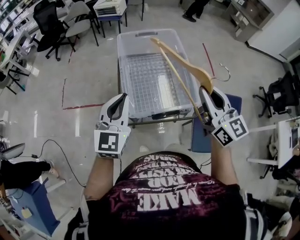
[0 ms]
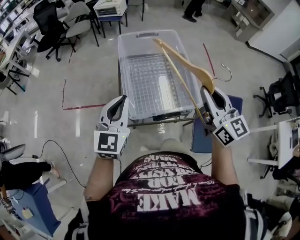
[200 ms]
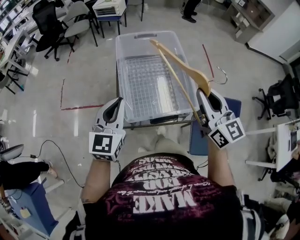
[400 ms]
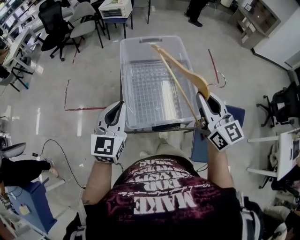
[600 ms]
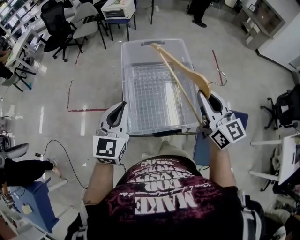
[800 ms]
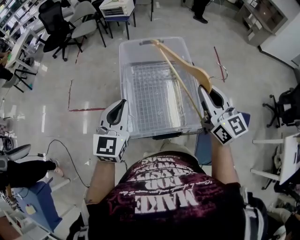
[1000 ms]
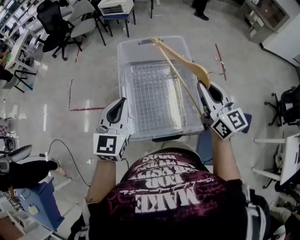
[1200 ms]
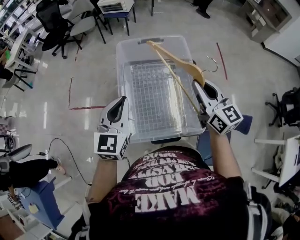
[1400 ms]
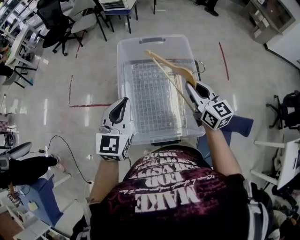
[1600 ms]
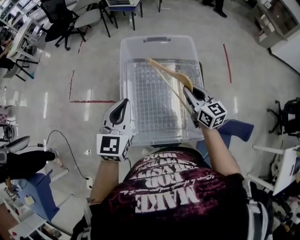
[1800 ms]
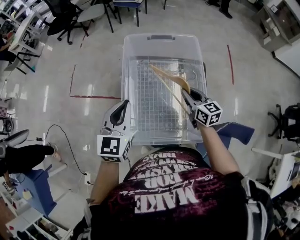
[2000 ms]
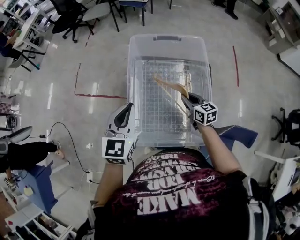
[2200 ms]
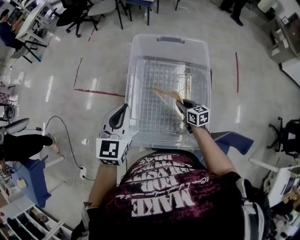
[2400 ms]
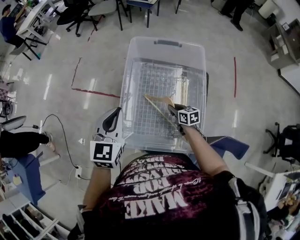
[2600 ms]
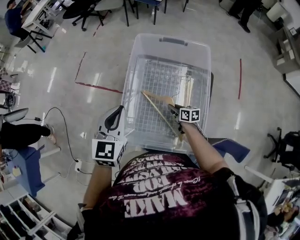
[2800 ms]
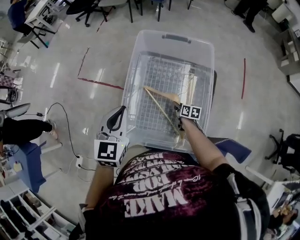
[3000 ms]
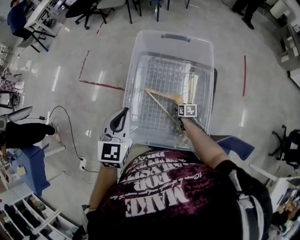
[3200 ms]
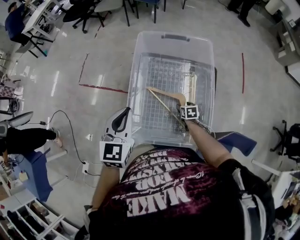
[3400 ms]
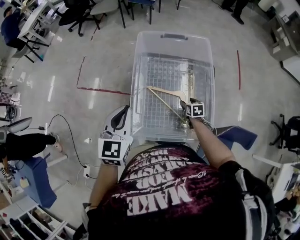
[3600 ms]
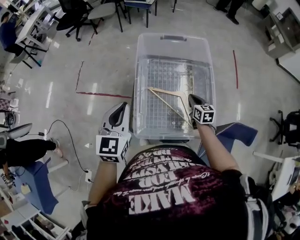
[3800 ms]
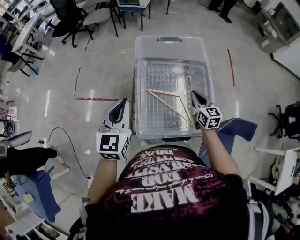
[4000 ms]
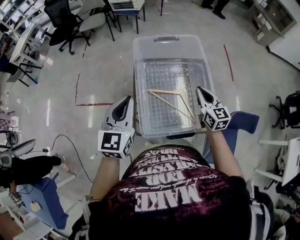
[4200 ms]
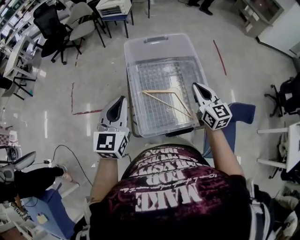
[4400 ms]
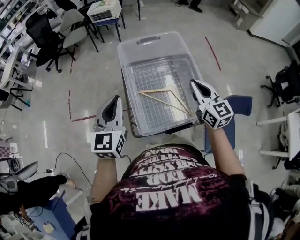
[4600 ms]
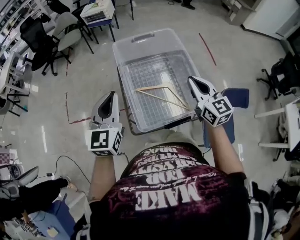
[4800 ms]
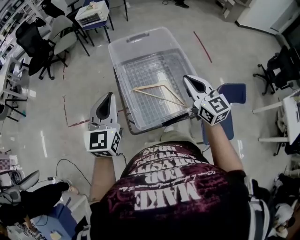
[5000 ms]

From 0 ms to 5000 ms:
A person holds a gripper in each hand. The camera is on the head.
From 0 ms to 1600 ms: The right gripper heads forward and downward, covering some 25 cm, while the left gripper shifts about 15 cm forward.
From 1600 ms to 3400 ms: The right gripper travels downward by about 40 cm, angles its fingers downward, by approximately 50 degrees, and opens, while the left gripper moves approximately 5 cm.
From 3400 ms to 5000 ms: The right gripper is displaced upward by roughly 40 cm, tilts its fingers approximately 50 degrees upward, and closes up. The left gripper moves upward and to the left, roughly 10 cm, and rotates roughly 20 degrees.

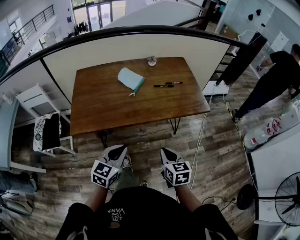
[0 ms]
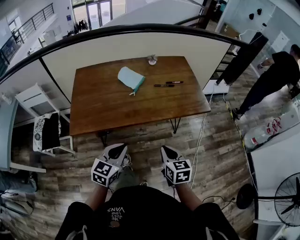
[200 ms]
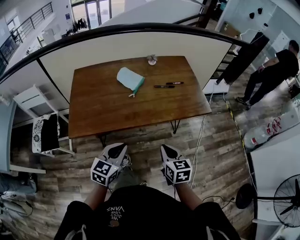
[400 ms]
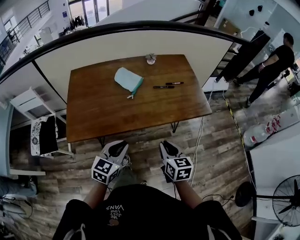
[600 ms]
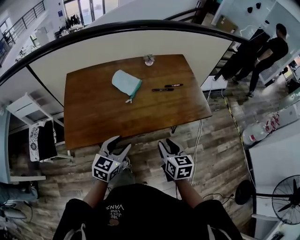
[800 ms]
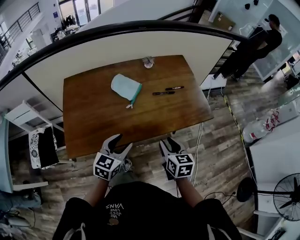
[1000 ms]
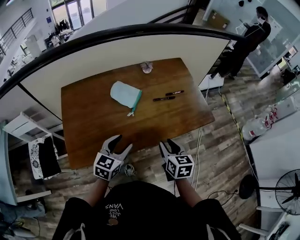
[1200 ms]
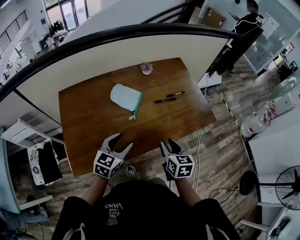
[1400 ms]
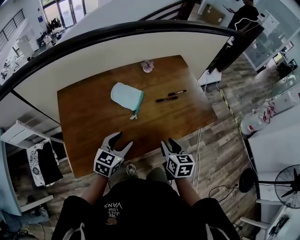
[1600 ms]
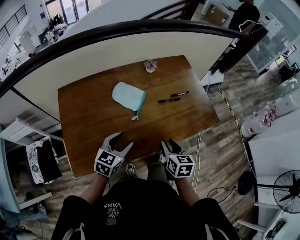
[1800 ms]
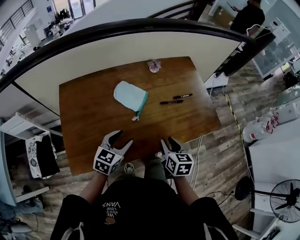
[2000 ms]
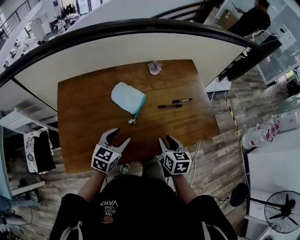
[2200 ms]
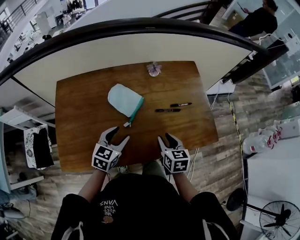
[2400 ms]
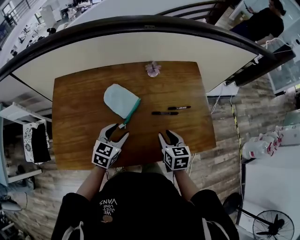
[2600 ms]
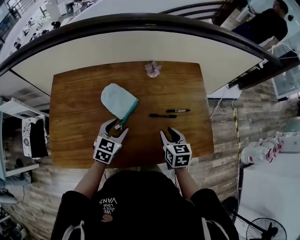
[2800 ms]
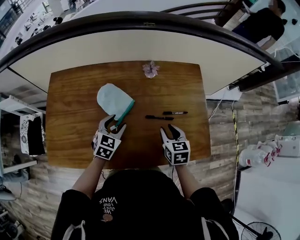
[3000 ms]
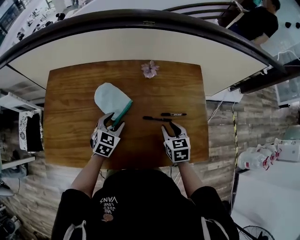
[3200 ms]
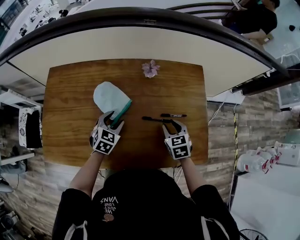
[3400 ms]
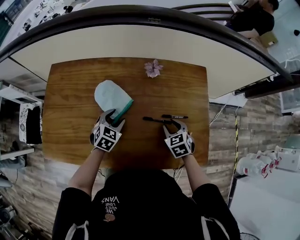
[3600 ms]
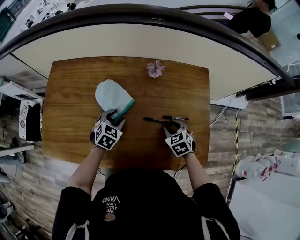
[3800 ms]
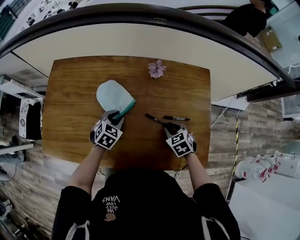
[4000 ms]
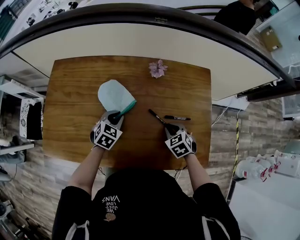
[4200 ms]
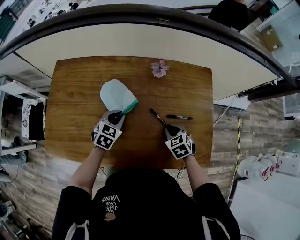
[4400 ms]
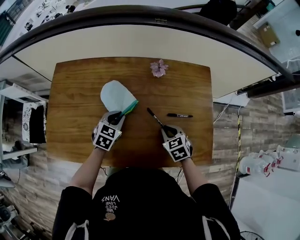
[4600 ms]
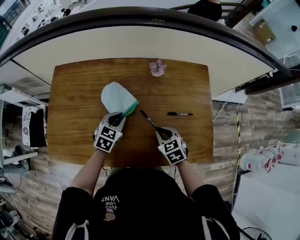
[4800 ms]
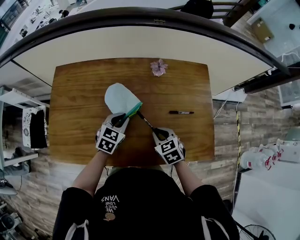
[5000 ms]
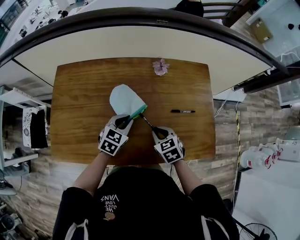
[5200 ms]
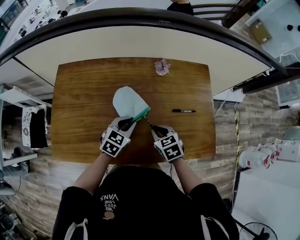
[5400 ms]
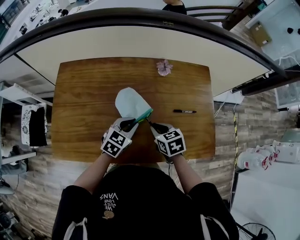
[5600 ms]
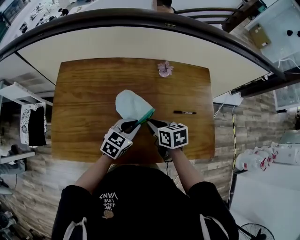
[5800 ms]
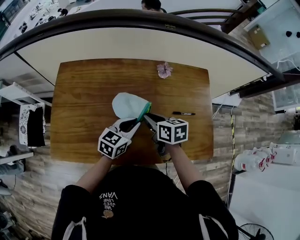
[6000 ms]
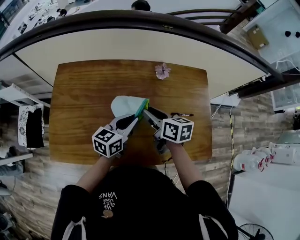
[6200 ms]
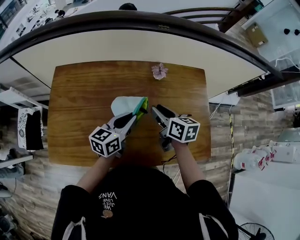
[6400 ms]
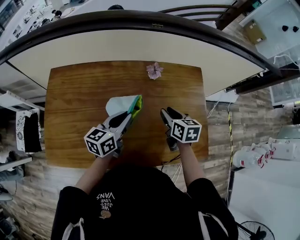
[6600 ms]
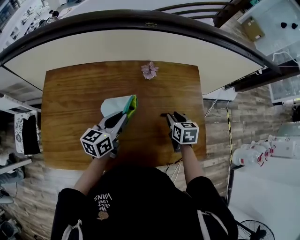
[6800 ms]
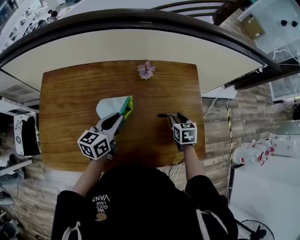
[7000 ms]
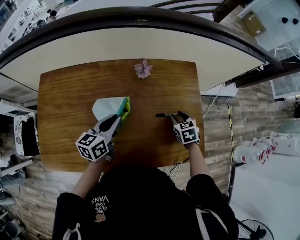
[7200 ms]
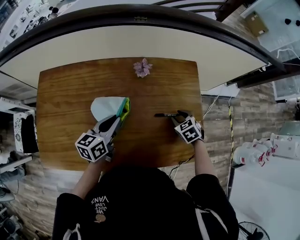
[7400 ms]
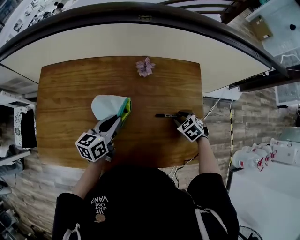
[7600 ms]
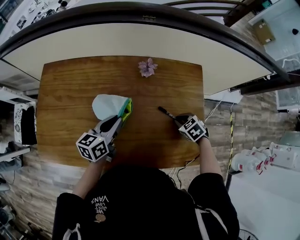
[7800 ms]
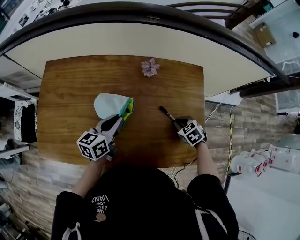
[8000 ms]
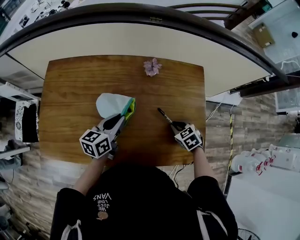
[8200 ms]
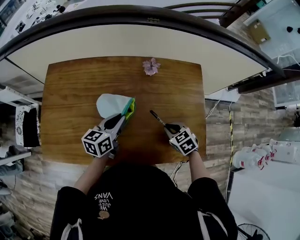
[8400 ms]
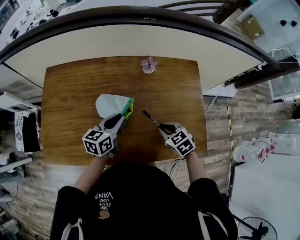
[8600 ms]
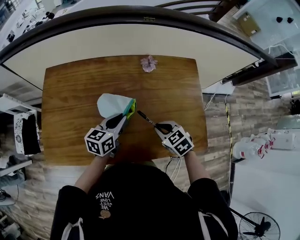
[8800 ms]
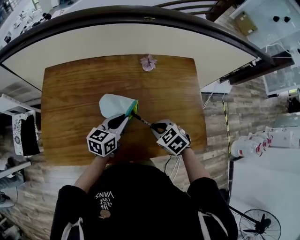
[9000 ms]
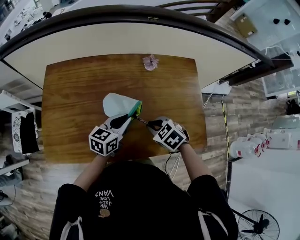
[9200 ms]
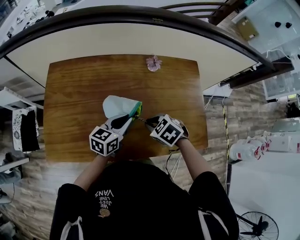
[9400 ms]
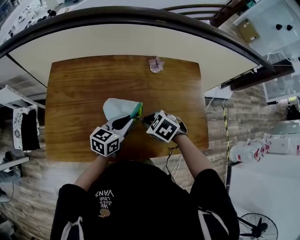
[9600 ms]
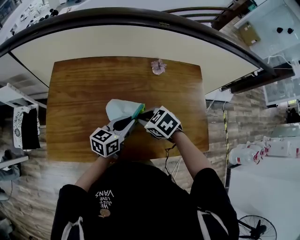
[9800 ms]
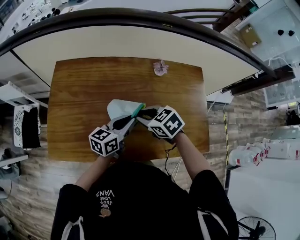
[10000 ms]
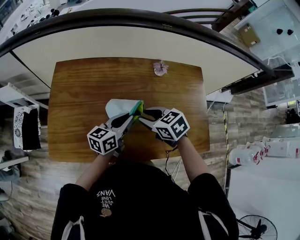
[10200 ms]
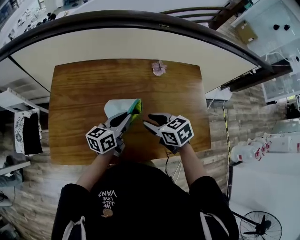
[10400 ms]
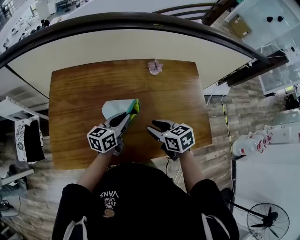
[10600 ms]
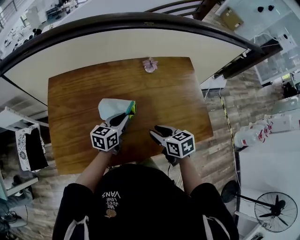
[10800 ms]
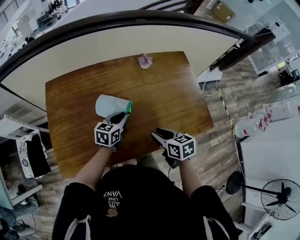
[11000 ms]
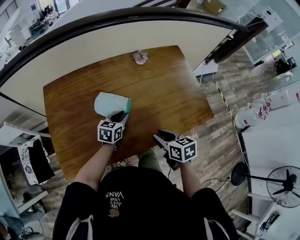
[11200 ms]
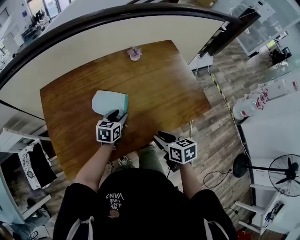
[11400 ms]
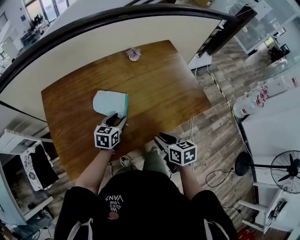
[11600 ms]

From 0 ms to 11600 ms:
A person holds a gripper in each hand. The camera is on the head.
From 0 ms to 1400 ms: Both grippers travel together forward, roughly 25 cm. The right gripper opens; the left gripper opens its fingers.
From 1400 ms to 2800 ms: The right gripper shifts about 20 cm forward. Meanwhile the left gripper is displaced forward and downward by roughly 20 cm.
From 2800 ms to 4400 ms: The left gripper heads downward and forward, covering roughly 10 cm, and closes its fingers. The right gripper shifts some 10 cm downward, and swivels approximately 40 degrees.
From 4400 ms to 5800 ms: The right gripper travels to the left and upward by roughly 15 cm, and swivels some 40 degrees. Meanwhile the left gripper heads upward and backward, covering roughly 10 cm, and turns by approximately 20 degrees.
From 5800 ms to 7200 ms: The right gripper travels to the right by roughly 25 cm, and swivels roughly 30 degrees, while the left gripper travels forward by some 5 cm, and rotates roughly 30 degrees.
From 7200 ms to 8800 ms: The right gripper heads to the left and backward, covering roughly 20 cm, and turns by about 20 degrees, while the left gripper shifts by about 5 cm.
From 8800 ms to 10200 ms: The right gripper heads to the left, upward and forward, covering some 15 cm.
From 10200 ms to 11600 ms: The left gripper is displaced downward by roughly 10 cm, turns by some 30 degrees, and opens. The right gripper shifts by roughly 20 cm, and swivels some 50 degrees.

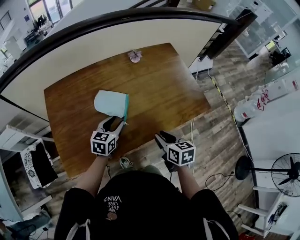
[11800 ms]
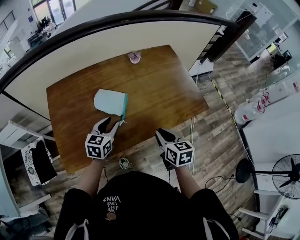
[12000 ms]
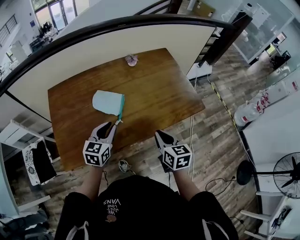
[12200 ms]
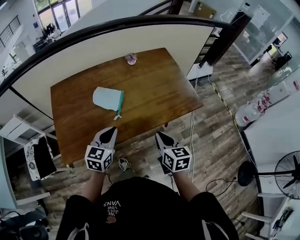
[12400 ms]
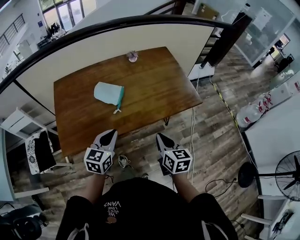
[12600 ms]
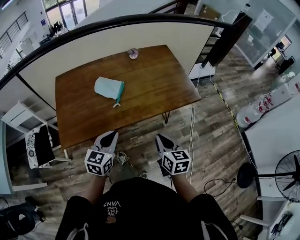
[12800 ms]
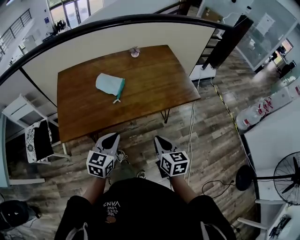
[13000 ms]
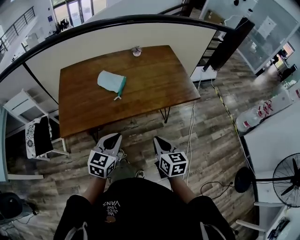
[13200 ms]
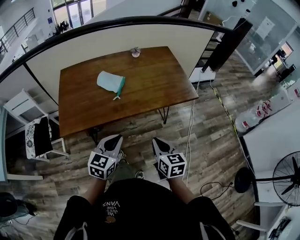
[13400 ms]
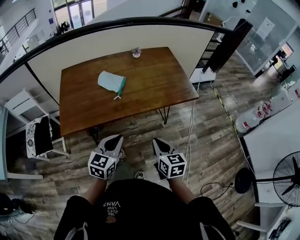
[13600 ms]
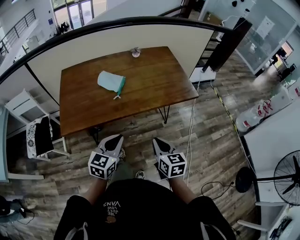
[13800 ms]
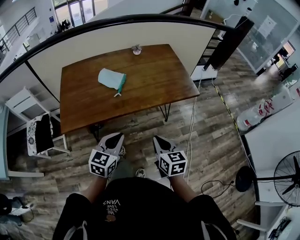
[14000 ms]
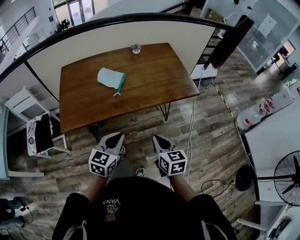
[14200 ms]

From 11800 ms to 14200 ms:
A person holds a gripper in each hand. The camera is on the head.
From 11800 ms to 13000 ms: Both grippers move backward, approximately 20 cm. The right gripper closes, while the left gripper closes.
From 13000 ms to 14200 ms: The left gripper moves roughly 5 cm.

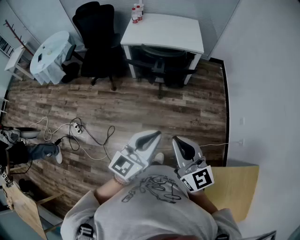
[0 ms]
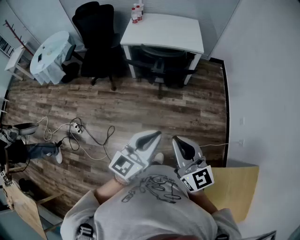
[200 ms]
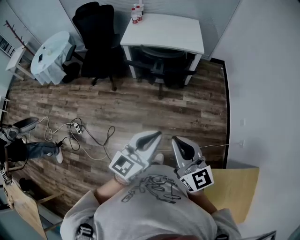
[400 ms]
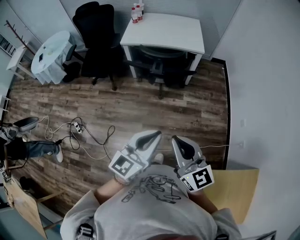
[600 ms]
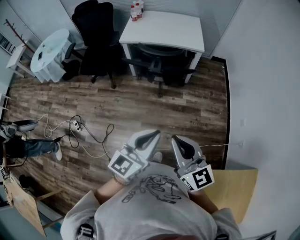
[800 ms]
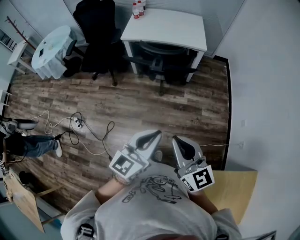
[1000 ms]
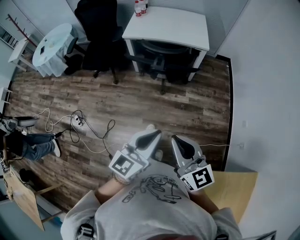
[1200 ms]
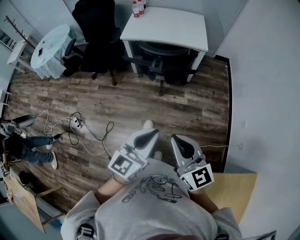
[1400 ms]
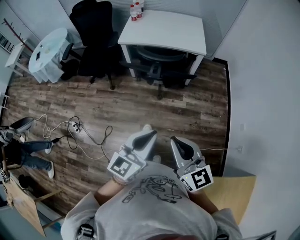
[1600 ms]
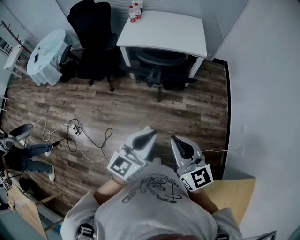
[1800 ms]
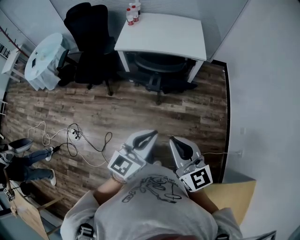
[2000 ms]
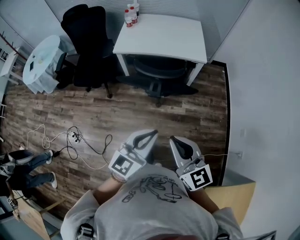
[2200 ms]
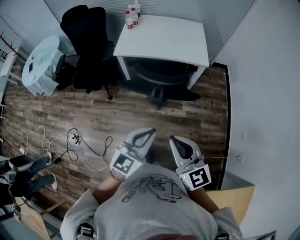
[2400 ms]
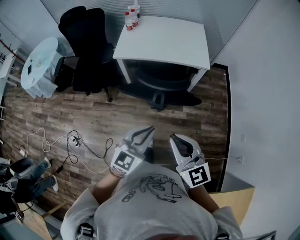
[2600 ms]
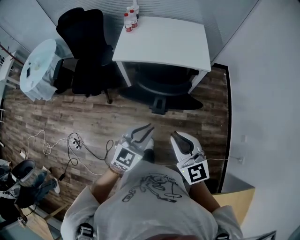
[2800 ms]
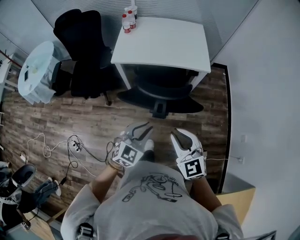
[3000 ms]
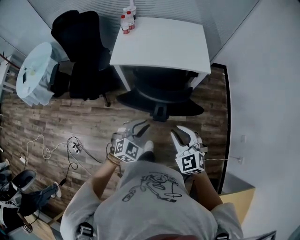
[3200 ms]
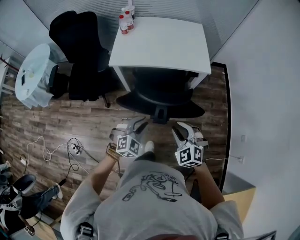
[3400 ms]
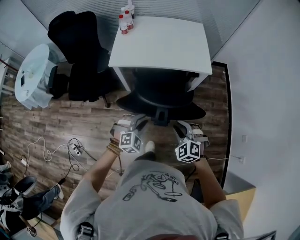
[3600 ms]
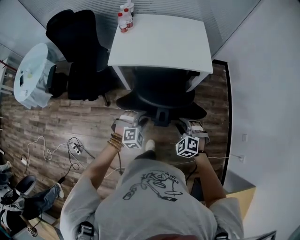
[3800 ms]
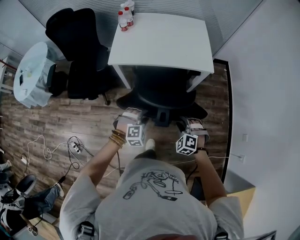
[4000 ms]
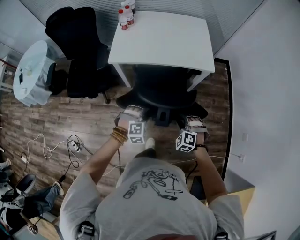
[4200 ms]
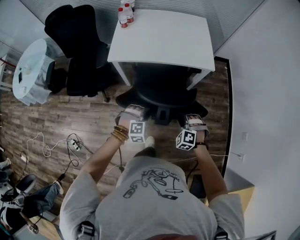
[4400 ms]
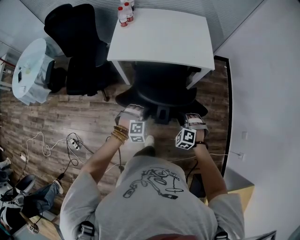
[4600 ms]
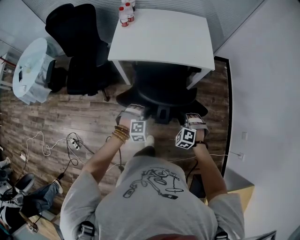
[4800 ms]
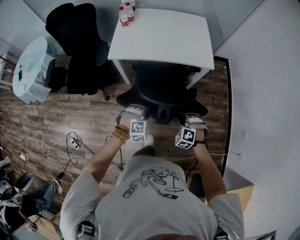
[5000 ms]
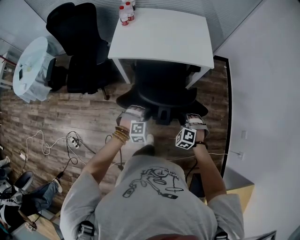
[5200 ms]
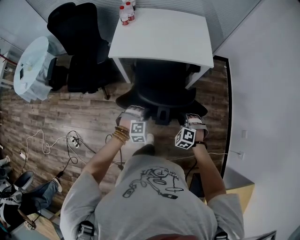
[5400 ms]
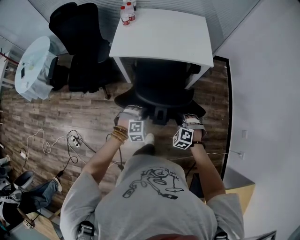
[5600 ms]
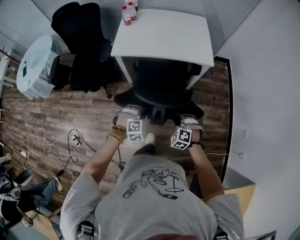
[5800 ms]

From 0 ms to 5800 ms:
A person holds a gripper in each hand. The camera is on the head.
From 0 ms to 1400 ms: Both grippers travel together forward, roughly 5 cm.
From 1400 ms to 2800 ms: The two grippers go approximately 30 cm forward. The left gripper changes its angle by roughly 20 degrees.
From 2800 ms to 4400 ms: Both grippers travel together downward and forward, roughly 30 cm. The left gripper points its fingers some 40 degrees further downward. Meanwhile the right gripper angles its fingers downward, by approximately 40 degrees.
From 4400 ms to 5800 ms: The grippers both shift backward by roughly 10 cm.
